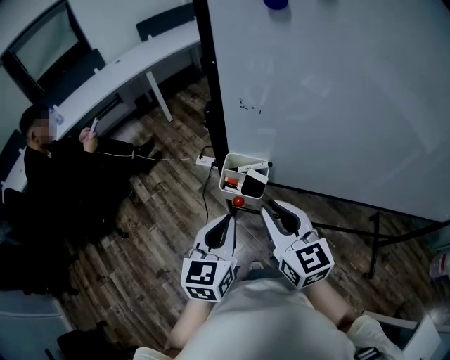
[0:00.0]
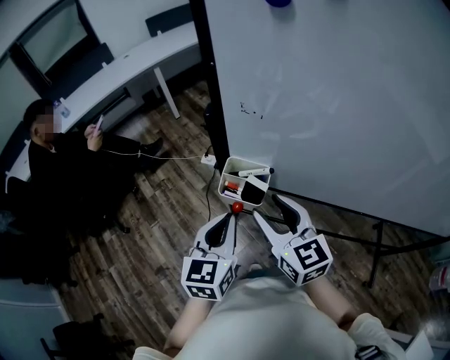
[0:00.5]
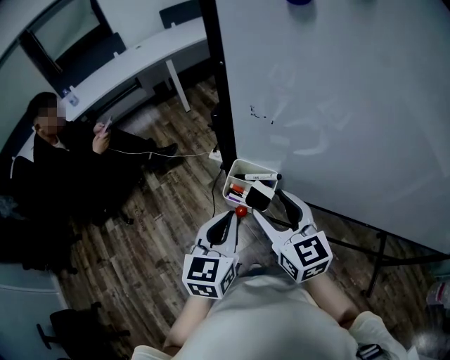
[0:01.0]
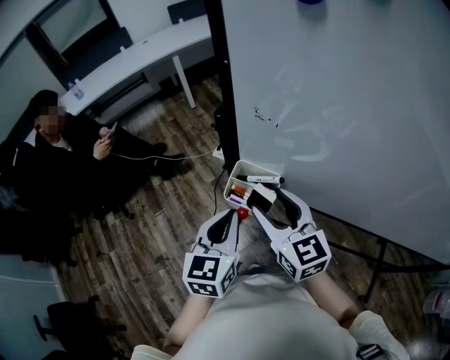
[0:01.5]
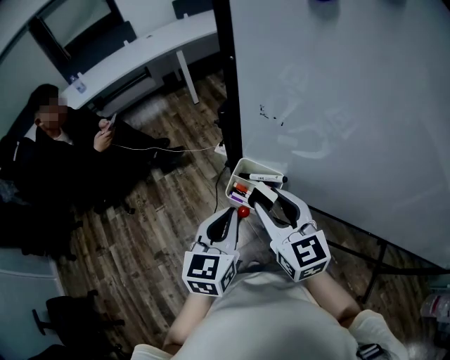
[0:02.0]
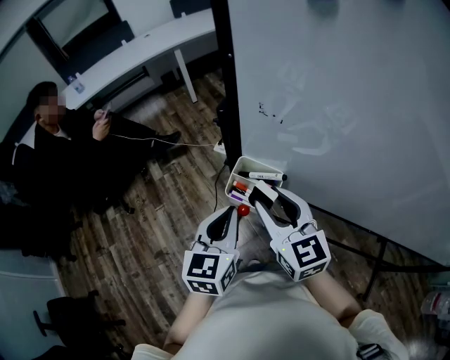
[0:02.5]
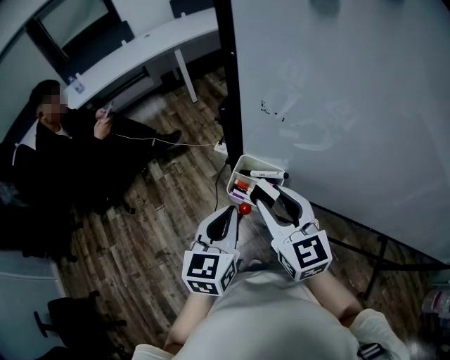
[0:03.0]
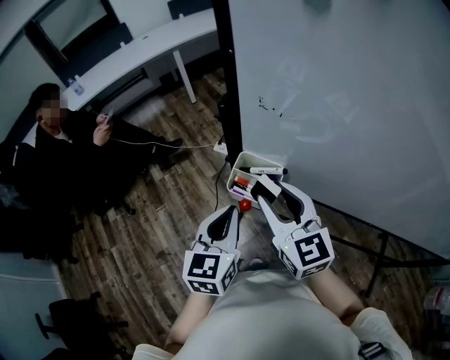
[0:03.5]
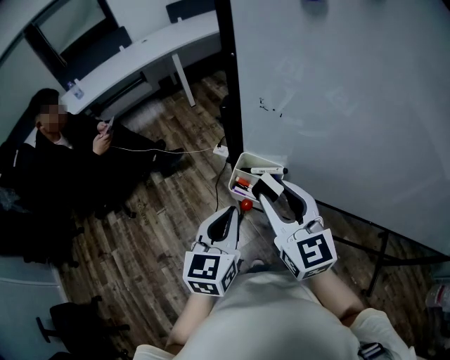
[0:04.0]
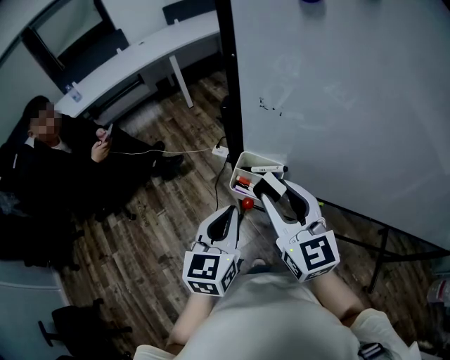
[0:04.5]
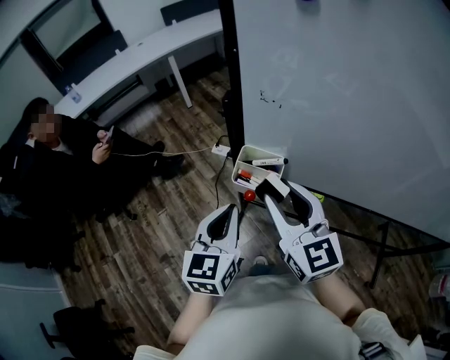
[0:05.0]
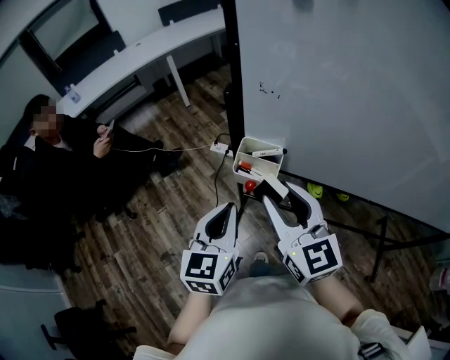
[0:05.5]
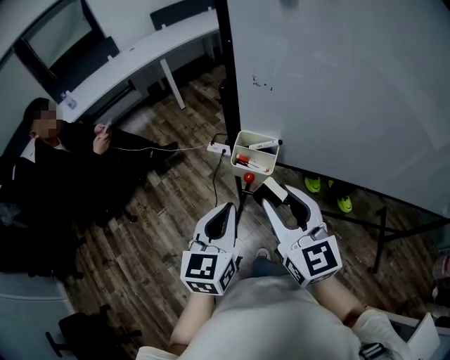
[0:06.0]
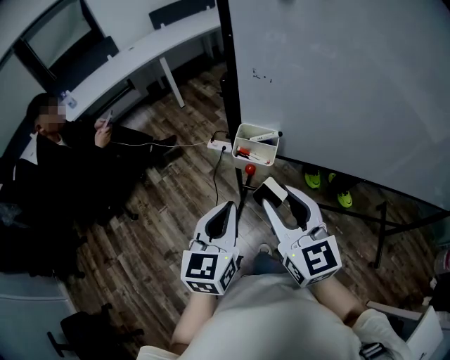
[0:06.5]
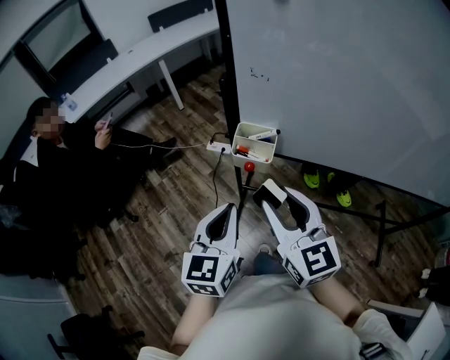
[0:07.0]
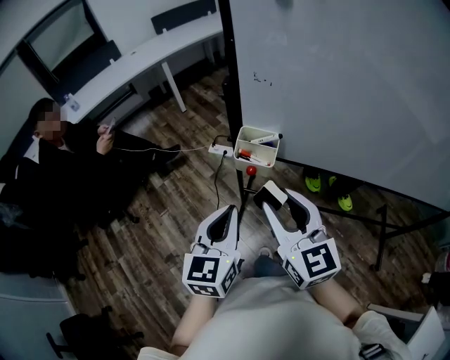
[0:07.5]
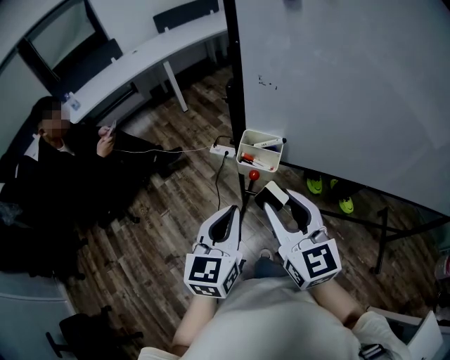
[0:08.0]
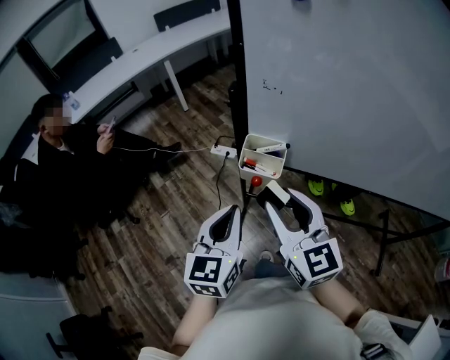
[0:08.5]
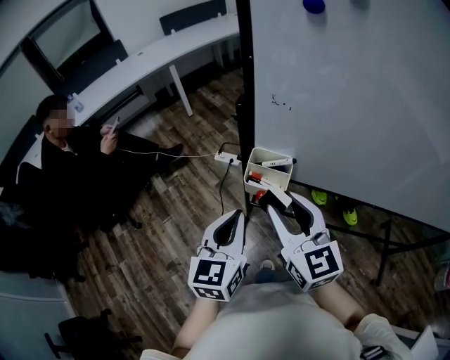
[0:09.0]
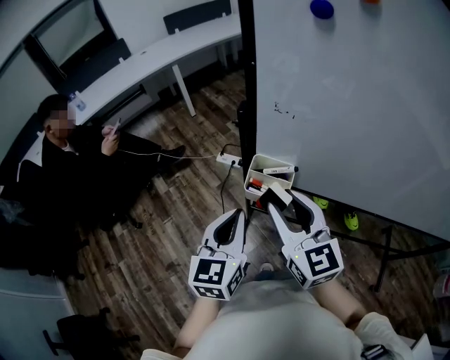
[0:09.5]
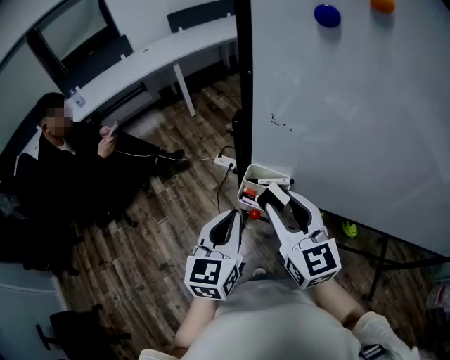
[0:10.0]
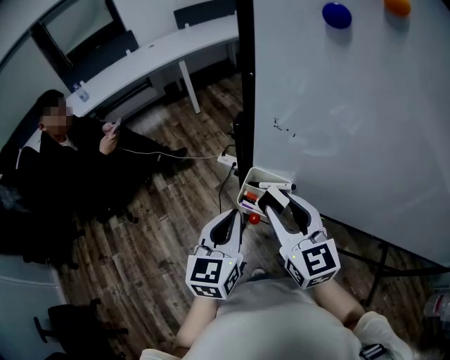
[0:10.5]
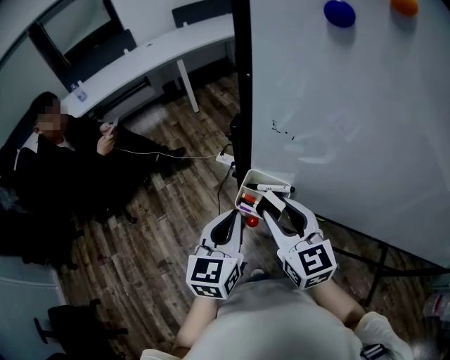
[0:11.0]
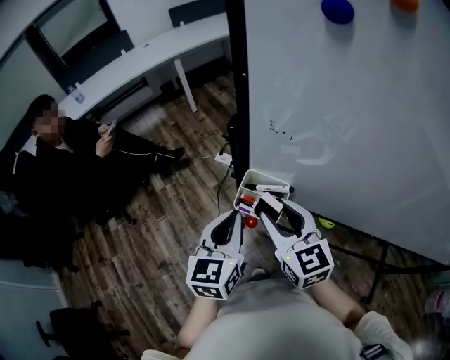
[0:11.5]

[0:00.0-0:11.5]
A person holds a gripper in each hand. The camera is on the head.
0:00.0 to 0:02.0: The grippers both shift forward by roughly 5 cm. The right gripper opens its fingers.
0:02.0 to 0:04.0: The grippers make only small movements.
0:04.0 to 0:06.0: The two grippers go about 10 cm backward.
0:06.0 to 0:07.5: The grippers make only small movements.
0:07.5 to 0:09.5: Both grippers travel together forward, roughly 10 cm.
0:09.5 to 0:11.5: The right gripper travels downward and forward by about 10 cm. The left gripper goes some 5 cm forward.

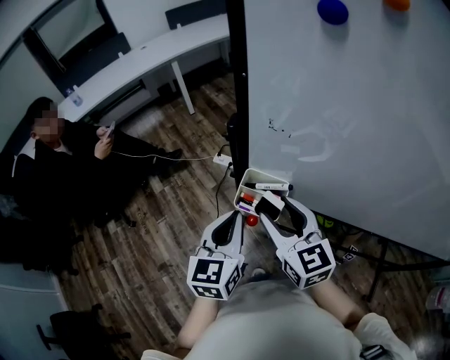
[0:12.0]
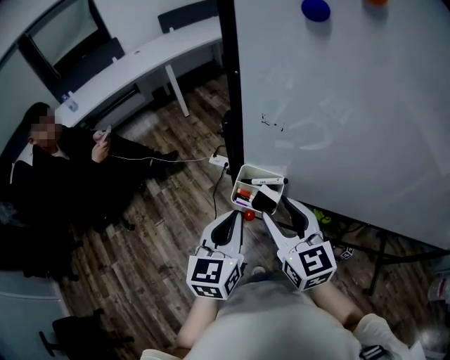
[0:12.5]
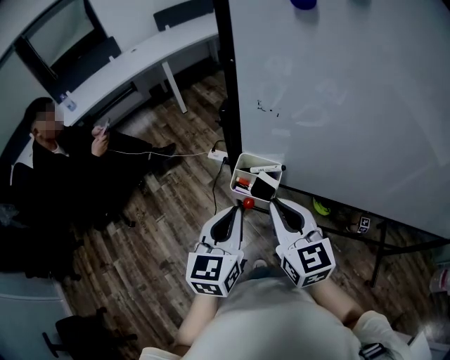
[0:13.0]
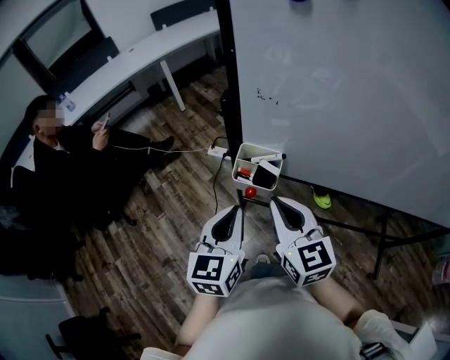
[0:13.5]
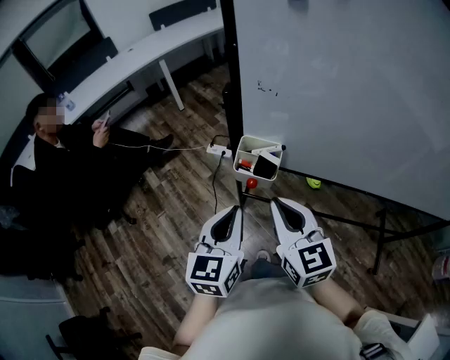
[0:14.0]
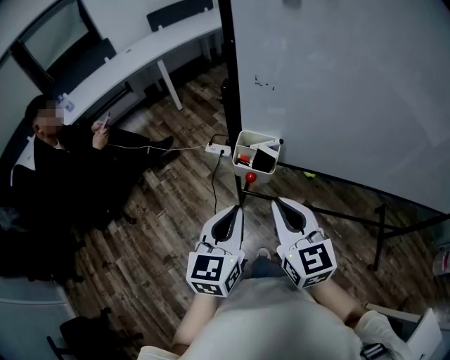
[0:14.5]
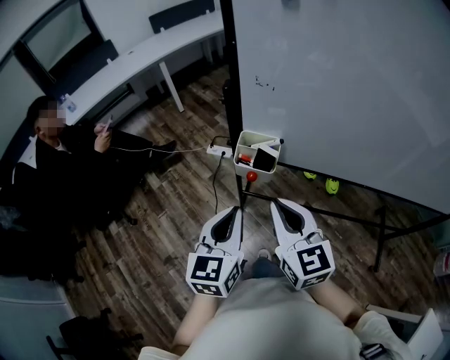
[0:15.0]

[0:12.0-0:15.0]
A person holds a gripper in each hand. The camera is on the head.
0:12.0 to 0:13.5: Both grippers move backward, roughly 5 cm. The right gripper closes up.
0:13.5 to 0:15.0: The two grippers go about 5 cm backward.

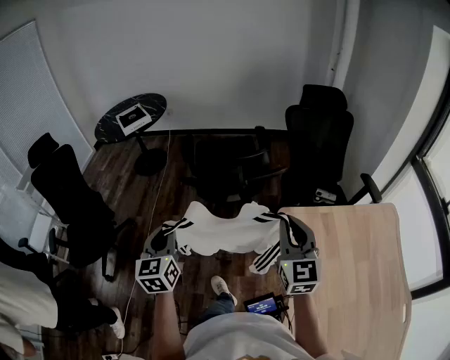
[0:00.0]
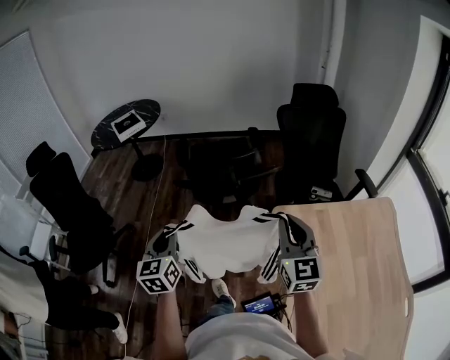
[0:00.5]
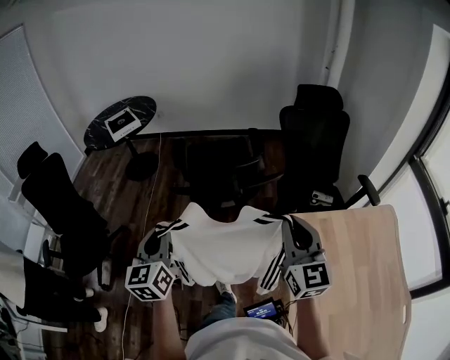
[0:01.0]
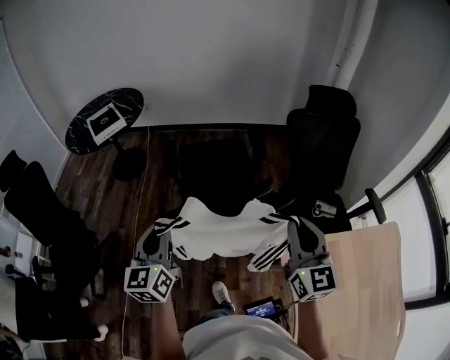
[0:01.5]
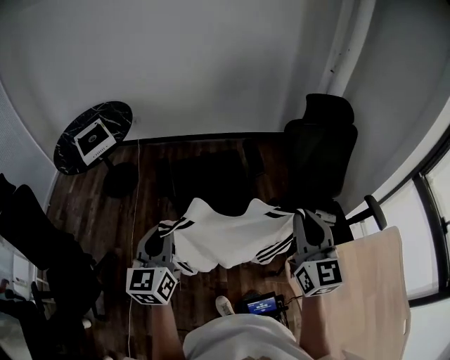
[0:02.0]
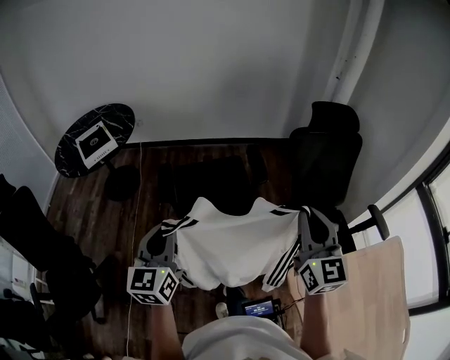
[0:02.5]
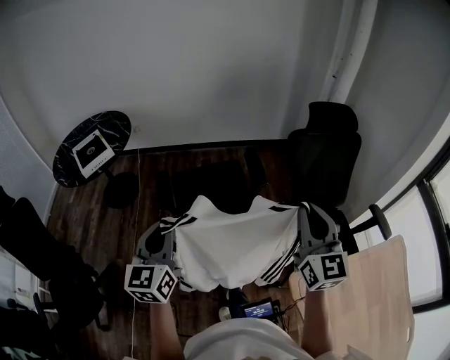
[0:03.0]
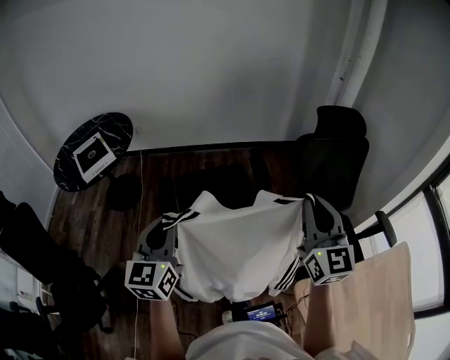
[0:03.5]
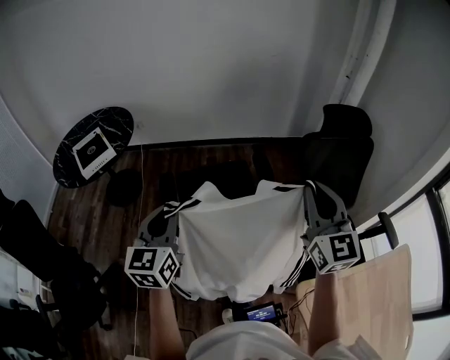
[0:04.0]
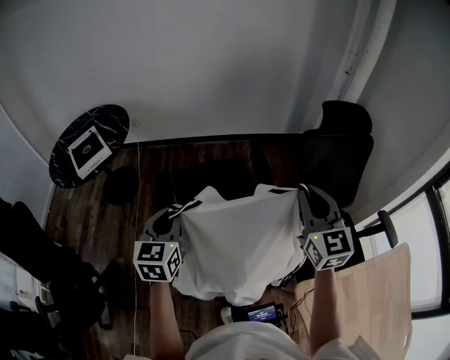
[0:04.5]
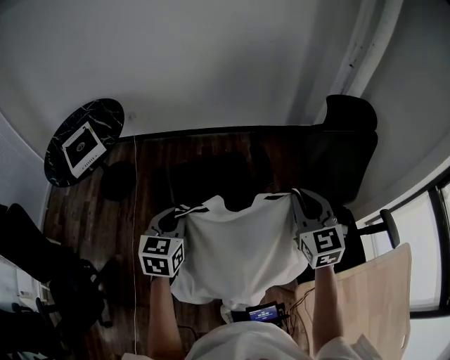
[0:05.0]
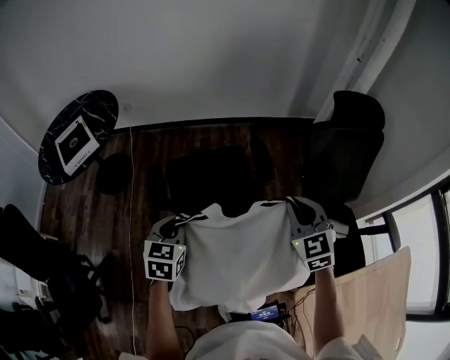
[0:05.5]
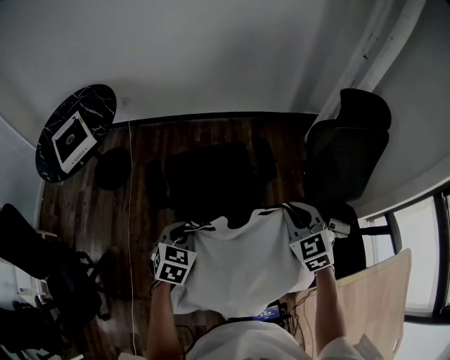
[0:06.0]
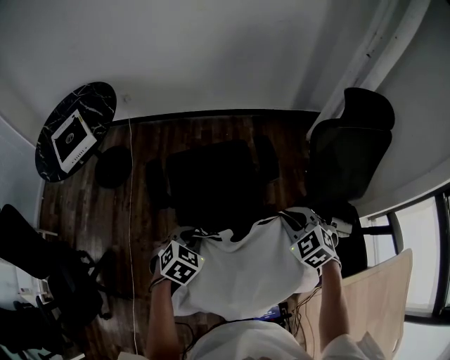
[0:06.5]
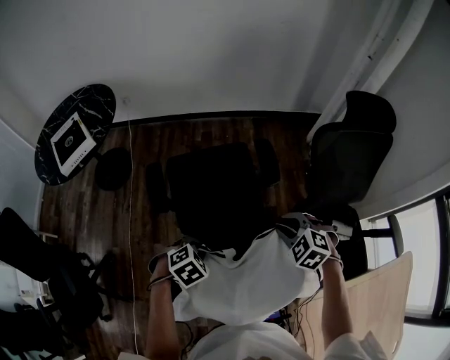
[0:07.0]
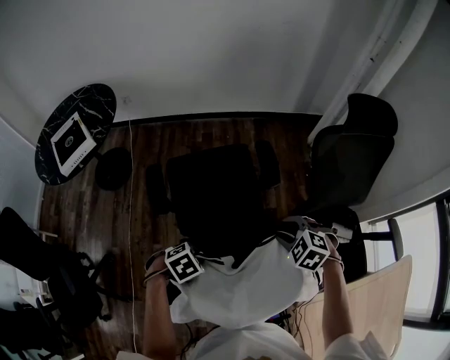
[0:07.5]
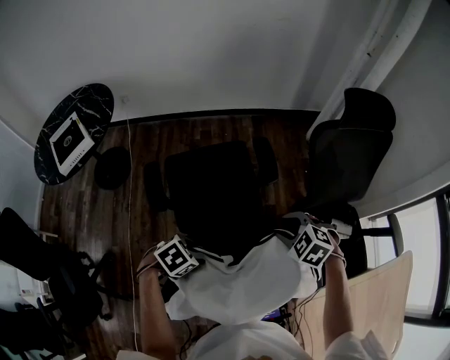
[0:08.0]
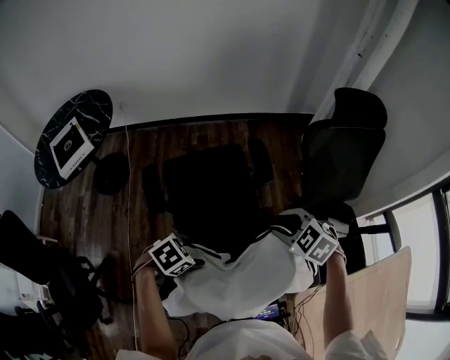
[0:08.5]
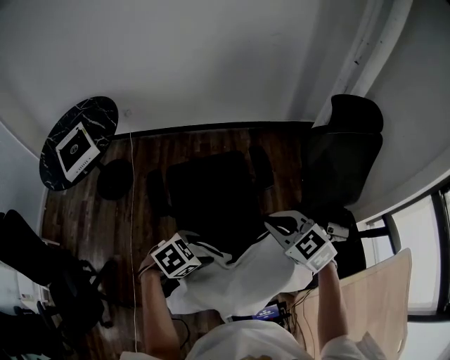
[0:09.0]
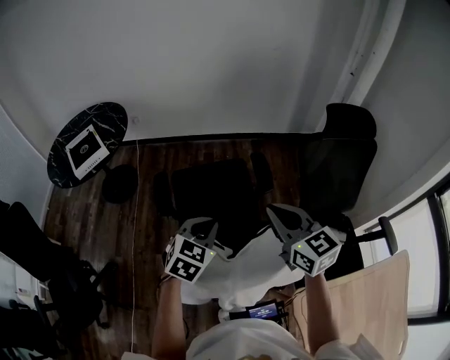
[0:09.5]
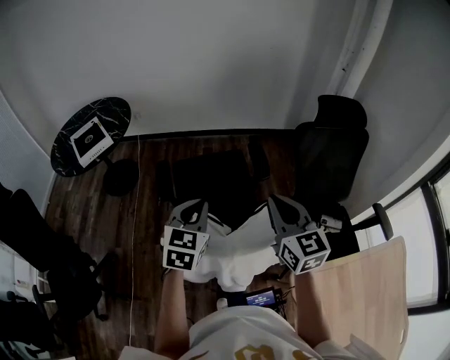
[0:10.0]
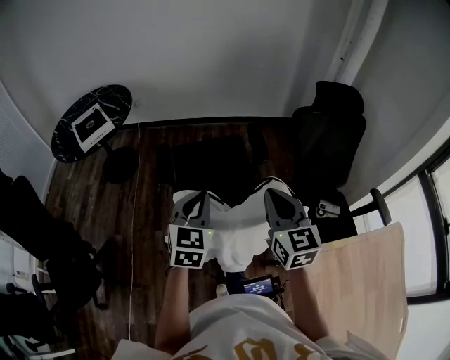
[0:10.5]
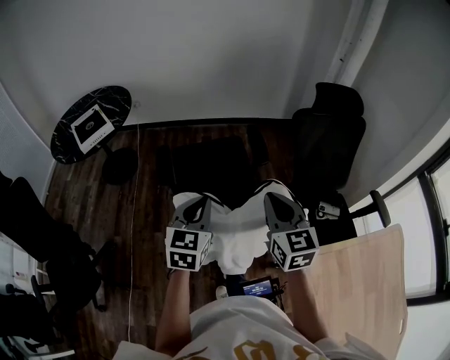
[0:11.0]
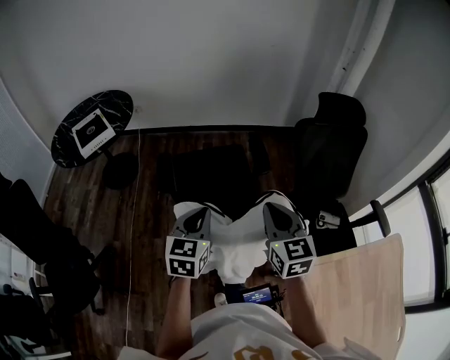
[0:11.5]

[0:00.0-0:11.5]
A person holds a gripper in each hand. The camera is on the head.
0:00.0 to 0:02.0: The two grippers go about 30 cm forward.
0:02.0 to 0:04.0: Both grippers move forward, approximately 15 cm.
0:04.0 to 0:06.0: The left gripper is displaced downward by about 25 cm, and points its fingers some 40 degrees further downward. The right gripper moves downward and forward, approximately 25 cm, and tips its fingers downward by some 40 degrees.
0:06.0 to 0:07.5: Both grippers move downward, some 10 cm. The right gripper points its fingers approximately 30 degrees further downward, and opens. Meanwhile the left gripper rotates about 50 degrees.
0:07.5 to 0:09.5: The grippers both shift upward by roughly 20 cm. The left gripper angles its fingers upward, by roughly 40 degrees, and opens, then closes again, while the right gripper angles its fingers upward, by some 50 degrees, and closes.
0:09.5 to 0:11.5: Both grippers travel together backward, about 10 cm. The left gripper turns by approximately 20 degrees.

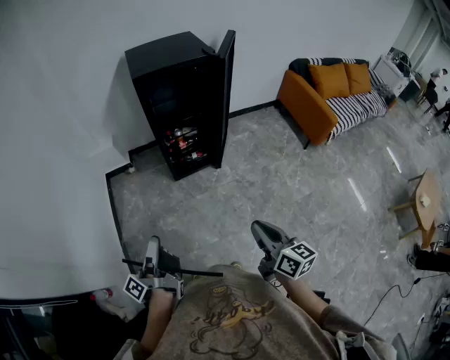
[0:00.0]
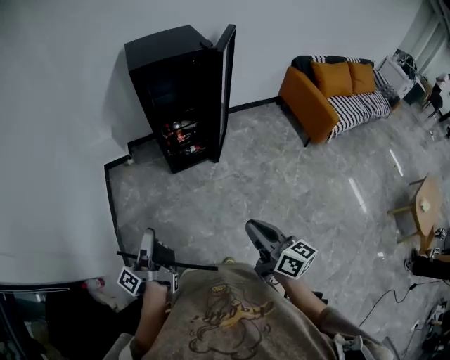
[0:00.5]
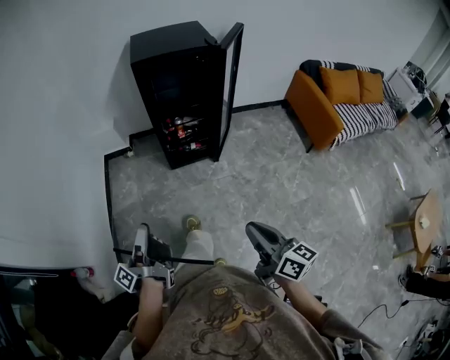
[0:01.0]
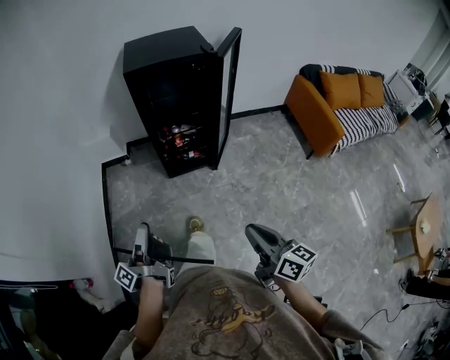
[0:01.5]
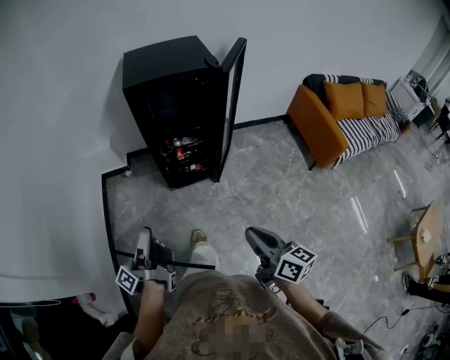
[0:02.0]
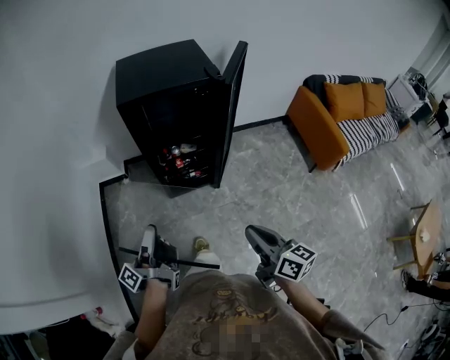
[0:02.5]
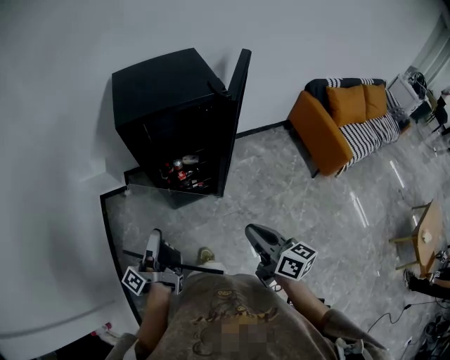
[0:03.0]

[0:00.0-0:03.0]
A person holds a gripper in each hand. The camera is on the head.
0:00.0 to 0:01.5: The right gripper shifts by roughly 10 cm.
0:01.5 to 0:03.0: The right gripper shifts by some 25 cm.
